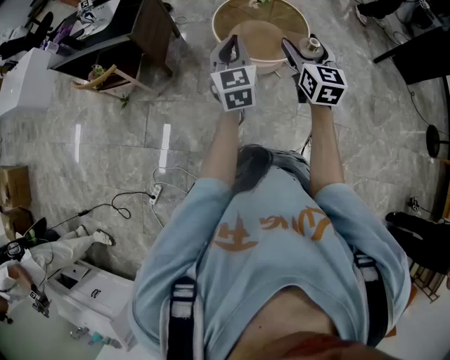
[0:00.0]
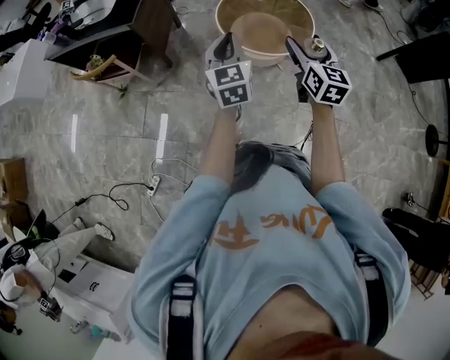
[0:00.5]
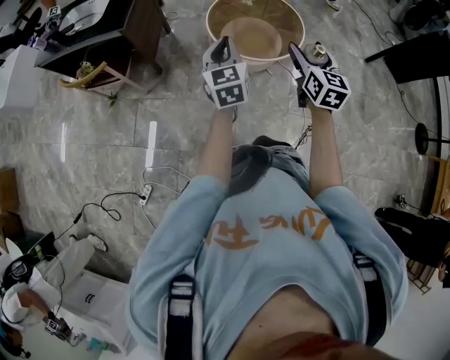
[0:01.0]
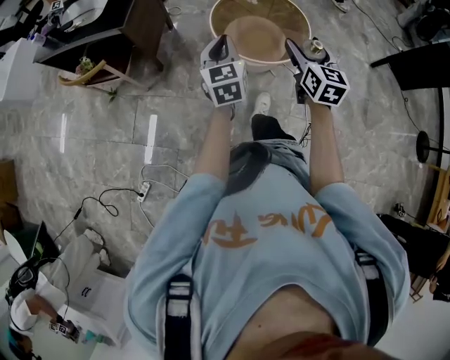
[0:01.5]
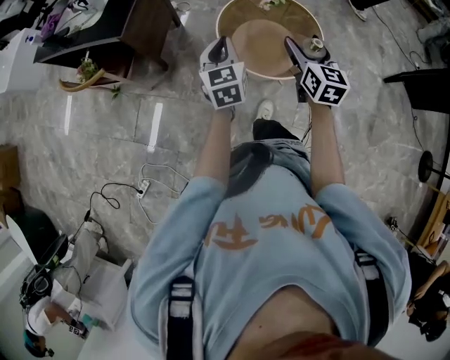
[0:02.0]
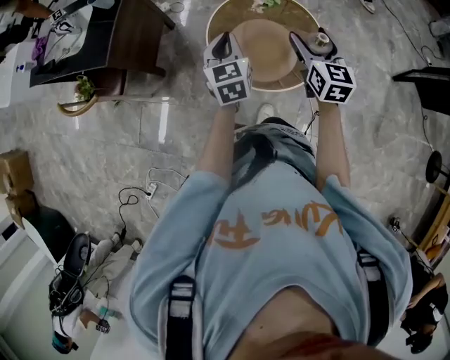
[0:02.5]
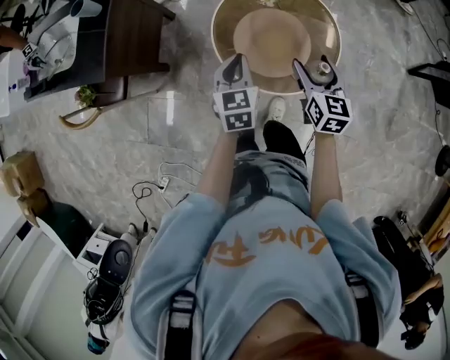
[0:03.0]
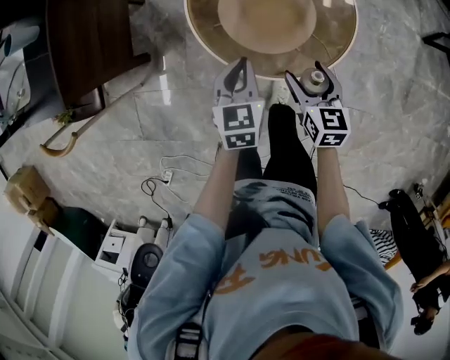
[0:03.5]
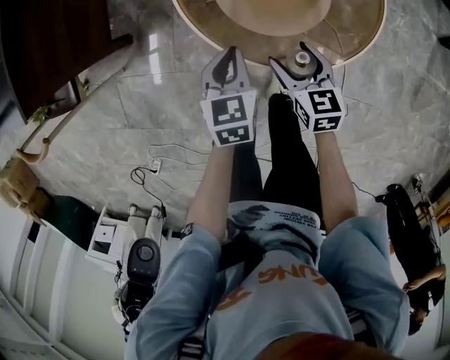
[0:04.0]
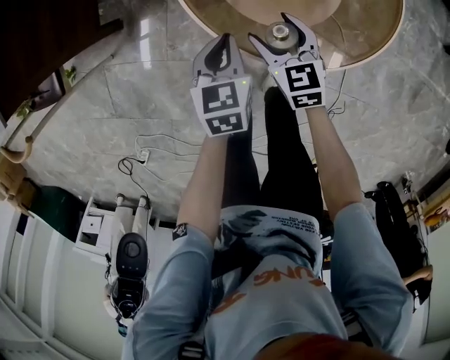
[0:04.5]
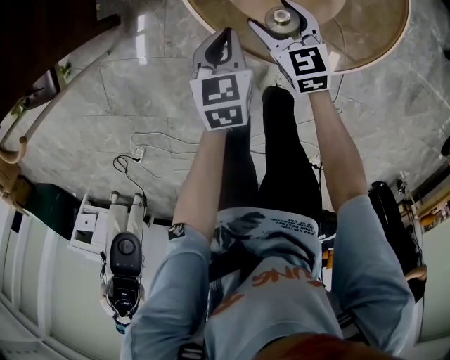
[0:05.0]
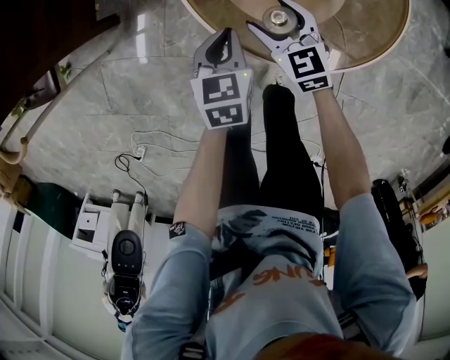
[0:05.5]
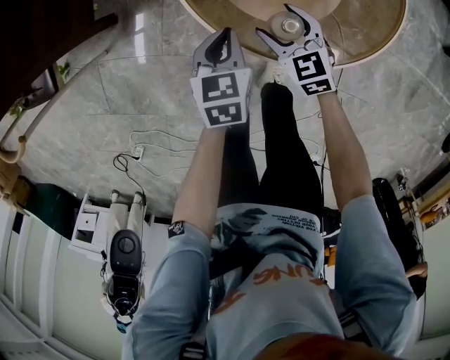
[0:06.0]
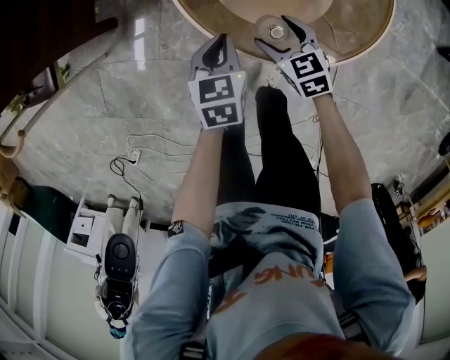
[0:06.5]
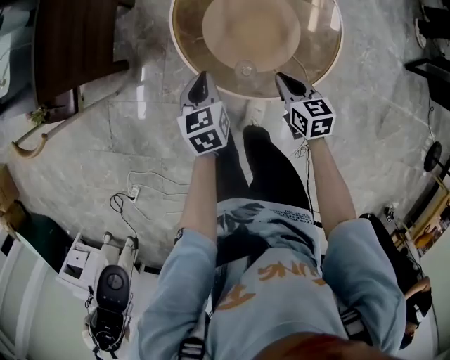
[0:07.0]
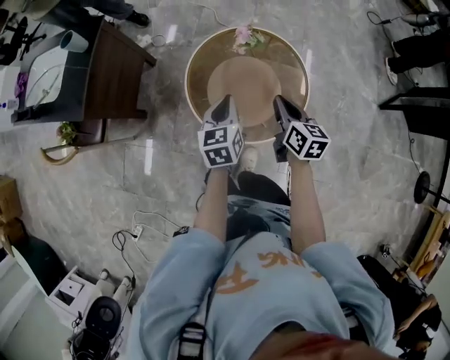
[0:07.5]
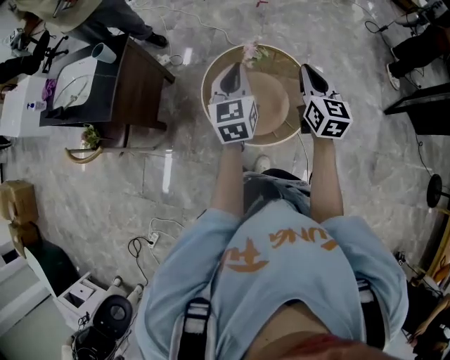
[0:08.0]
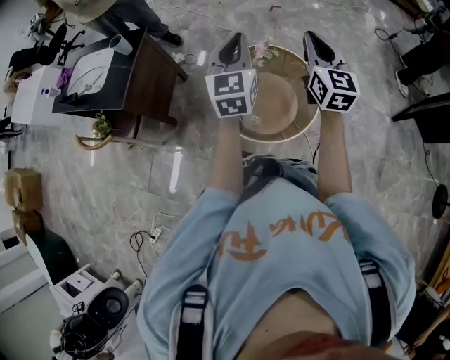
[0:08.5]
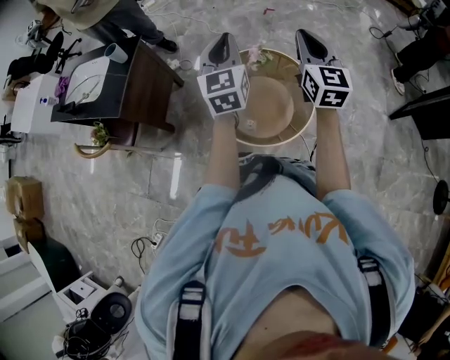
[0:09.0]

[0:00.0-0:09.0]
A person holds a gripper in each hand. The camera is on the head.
0:00.0 to 0:02.0: Both grippers travel together forward, some 20 cm.
0:02.0 to 0:04.5: The two grippers go approximately 50 cm downward. The right gripper changes its angle by roughly 30 degrees, while the left gripper angles its fingers downward, by approximately 30 degrees.
0:04.5 to 0:07.0: The right gripper is displaced to the right, upward and backward by about 15 cm, and closes up. Meanwhile the left gripper is displaced upward by some 10 cm.
0:07.0 to 0:09.0: The grippers both shift upward by roughly 50 cm. The left gripper angles its fingers upward, by roughly 40 degrees. Meanwhile the right gripper tips its fingers upward by roughly 40 degrees.

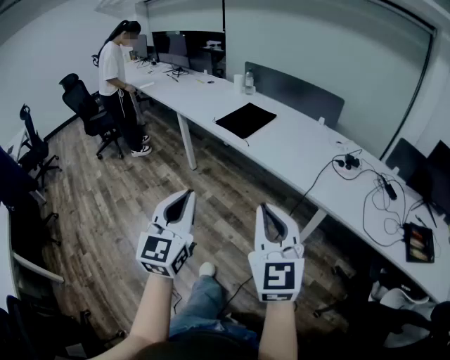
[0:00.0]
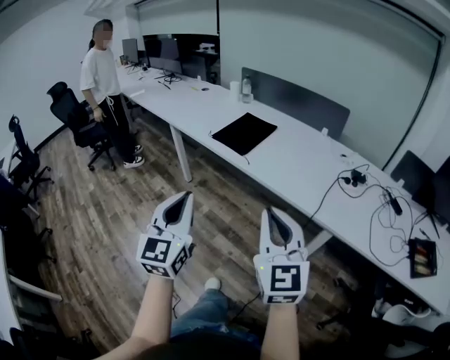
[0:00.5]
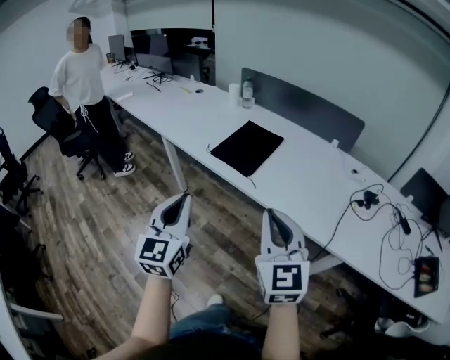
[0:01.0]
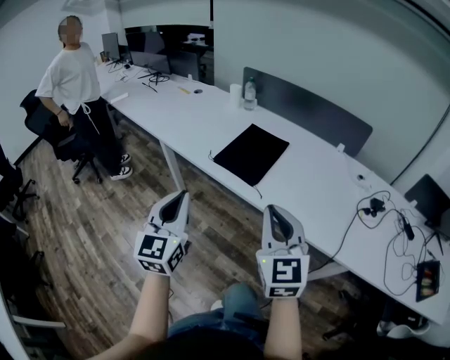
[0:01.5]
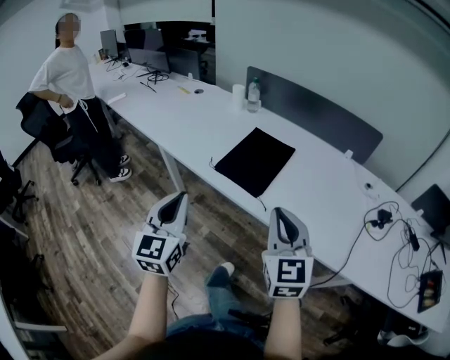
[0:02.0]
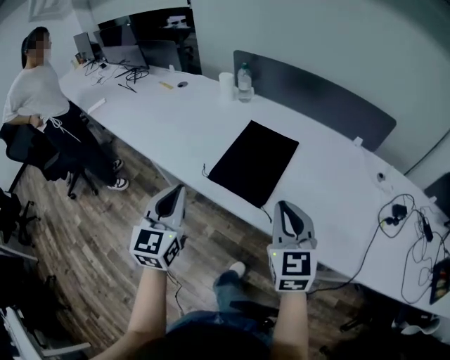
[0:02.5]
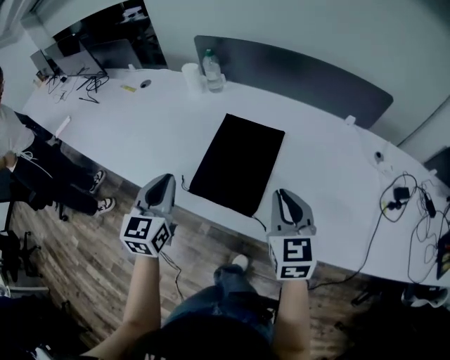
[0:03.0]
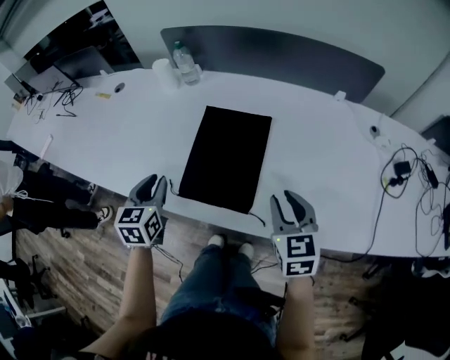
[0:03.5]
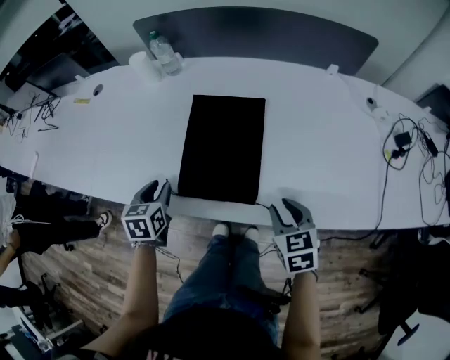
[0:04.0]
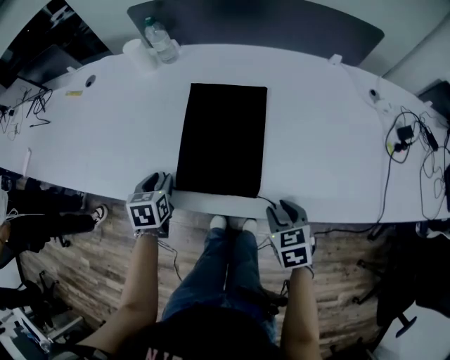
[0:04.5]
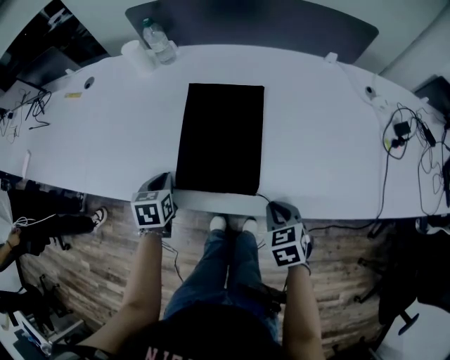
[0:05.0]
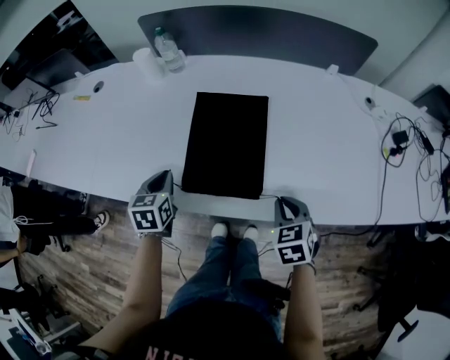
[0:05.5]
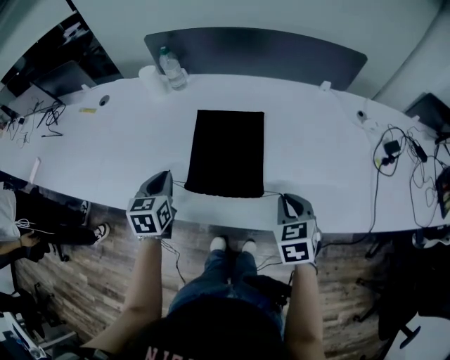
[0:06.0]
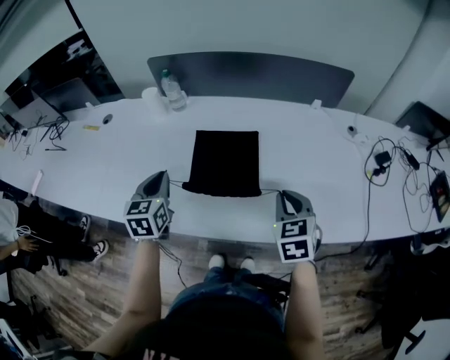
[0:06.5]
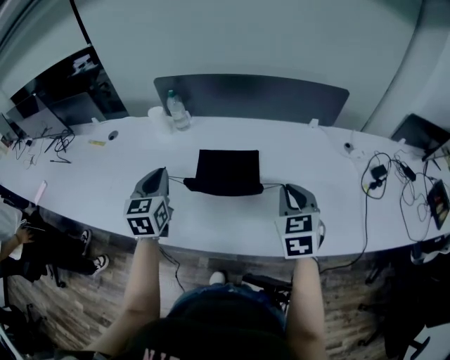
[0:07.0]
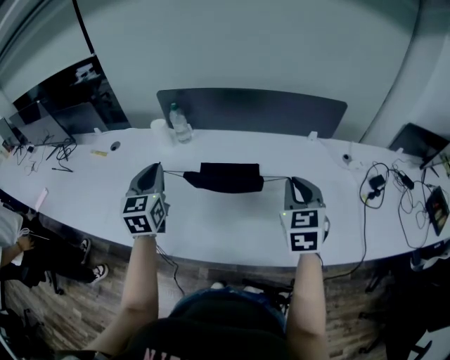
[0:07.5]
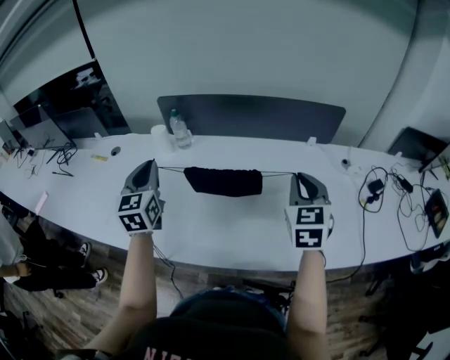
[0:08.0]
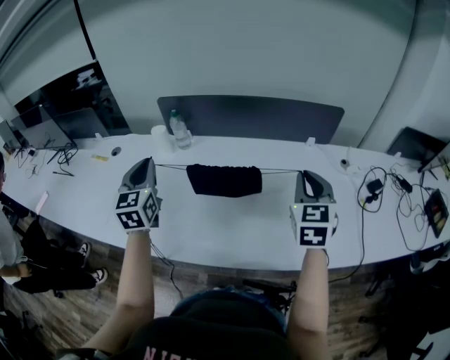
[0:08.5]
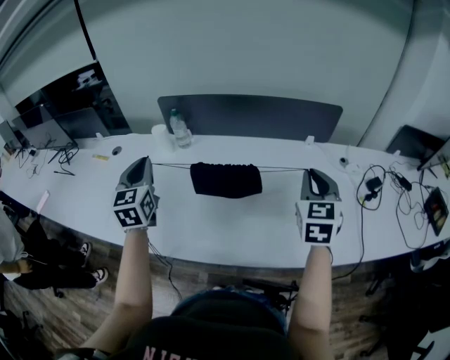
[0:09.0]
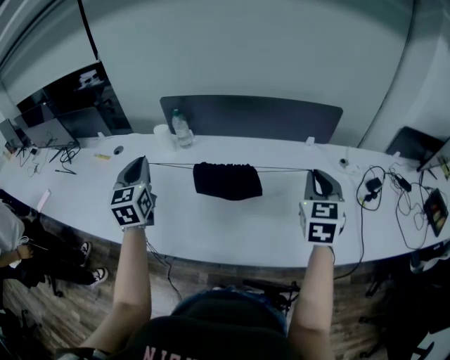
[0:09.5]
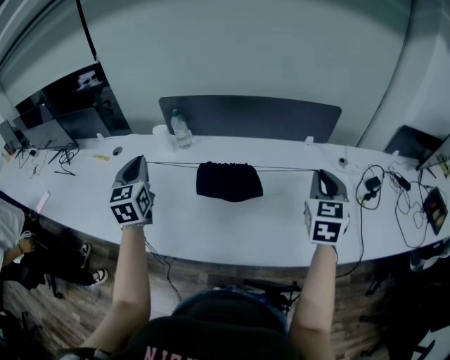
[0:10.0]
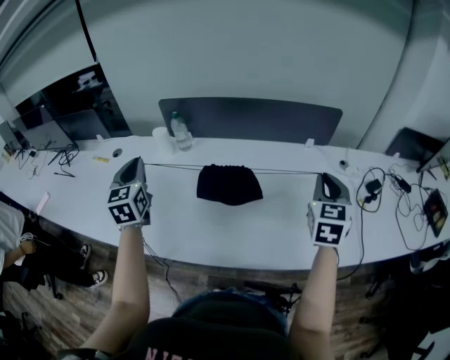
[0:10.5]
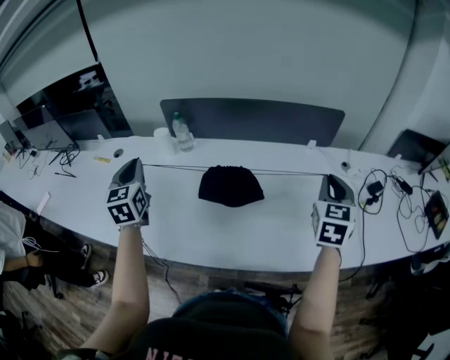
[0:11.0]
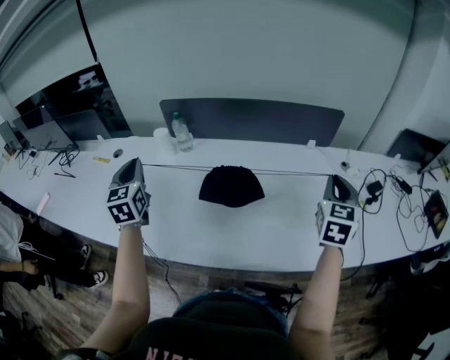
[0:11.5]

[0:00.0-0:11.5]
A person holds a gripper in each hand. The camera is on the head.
0:00.0 to 0:02.0: Both grippers are carried forward, about 50 cm.
0:02.0 to 0:04.0: The right gripper is displaced downward and forward by roughly 30 cm, tilts its fingers approximately 40 degrees downward, and opens up, while the left gripper moves forward and downward, roughly 40 cm, tips its fingers downward by about 40 degrees, and opens up.
0:04.0 to 0:06.0: The left gripper travels upward by some 5 cm, and closes its fingers. The right gripper closes its fingers.
0:06.0 to 0:07.5: Both grippers move upward and forward, some 20 cm. The left gripper rotates about 20 degrees, while the right gripper turns by some 20 degrees.
0:07.5 to 0:09.5: The left gripper moves some 5 cm; the right gripper shifts roughly 5 cm to the right.
0:09.5 to 0:11.5: The right gripper heads to the right, covering some 5 cm.

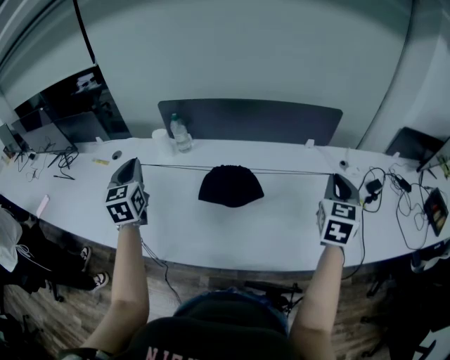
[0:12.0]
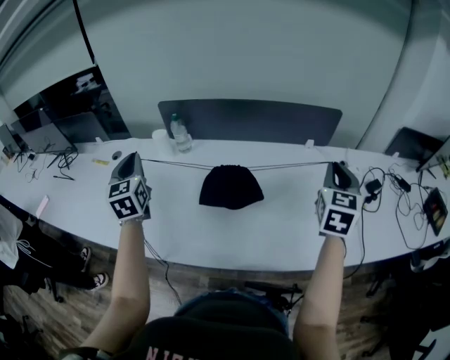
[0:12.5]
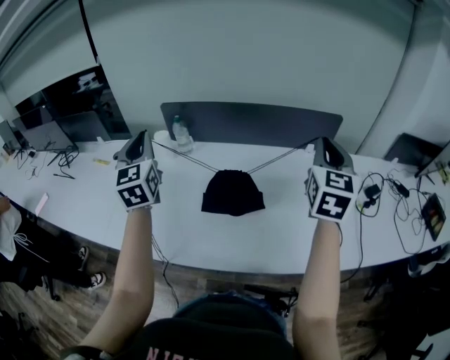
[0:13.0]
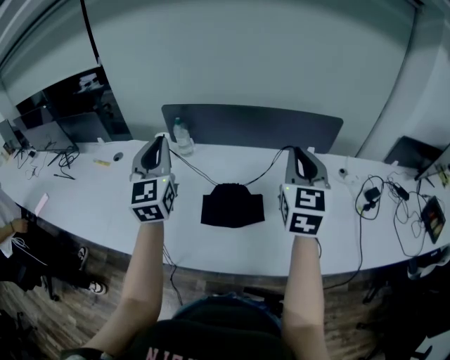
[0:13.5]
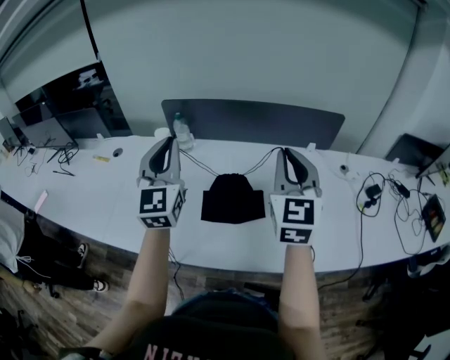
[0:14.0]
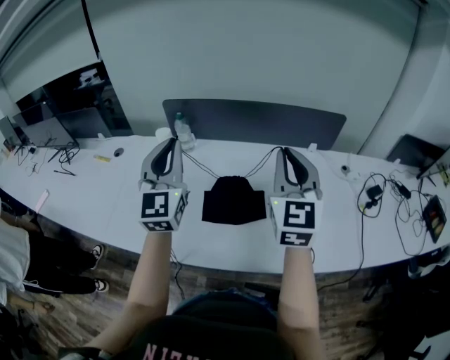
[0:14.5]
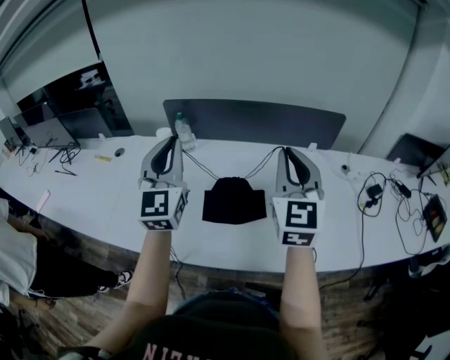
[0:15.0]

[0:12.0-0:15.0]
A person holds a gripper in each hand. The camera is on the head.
0:12.0 to 0:13.5: The left gripper heads to the right and upward, covering some 15 cm, while the right gripper heads to the left and upward, covering about 15 cm.
0:13.5 to 0:15.0: There are only small adjustments of the grippers.

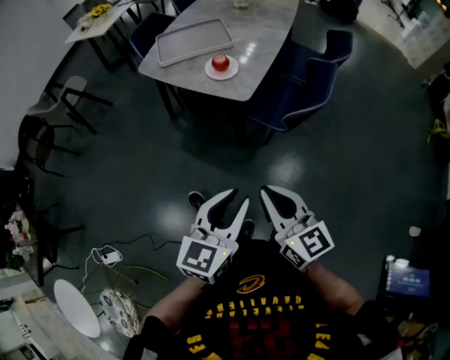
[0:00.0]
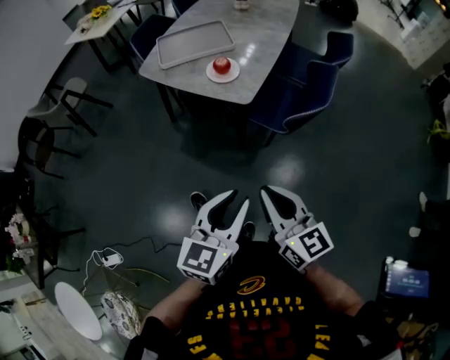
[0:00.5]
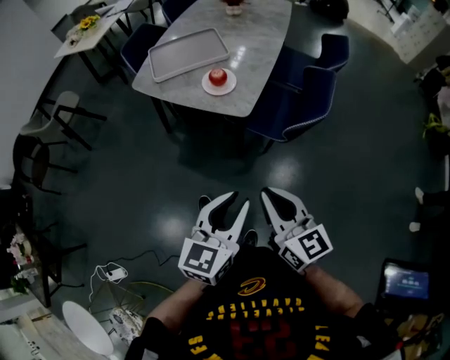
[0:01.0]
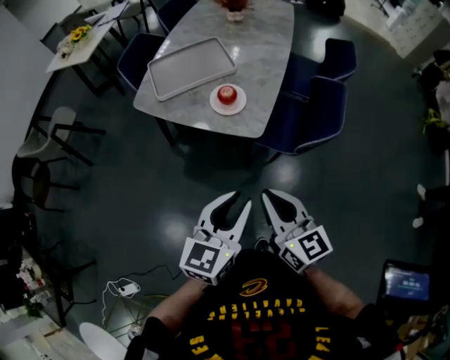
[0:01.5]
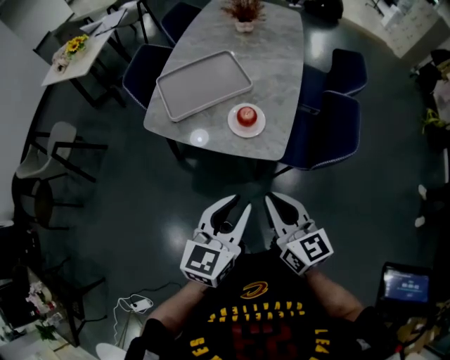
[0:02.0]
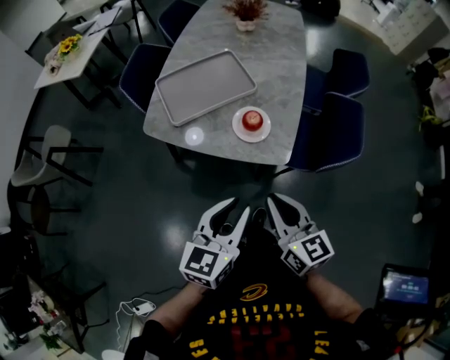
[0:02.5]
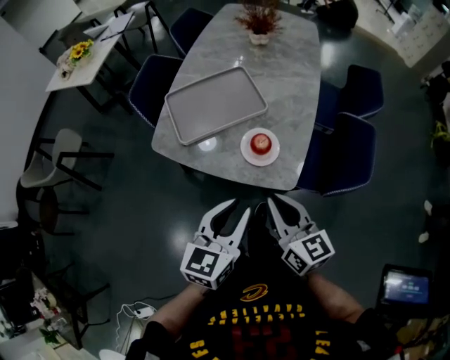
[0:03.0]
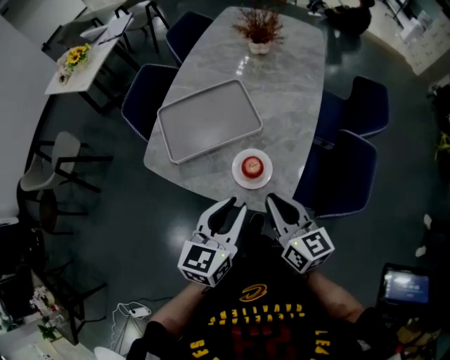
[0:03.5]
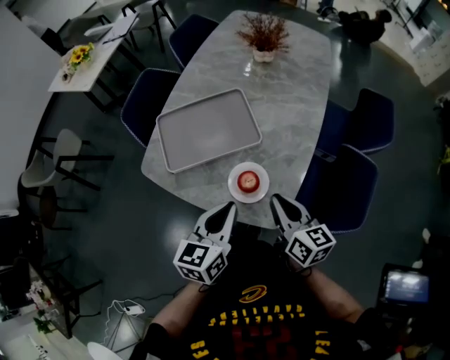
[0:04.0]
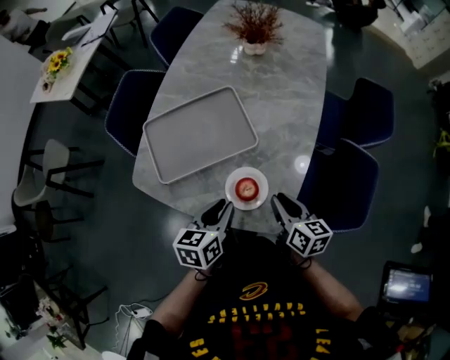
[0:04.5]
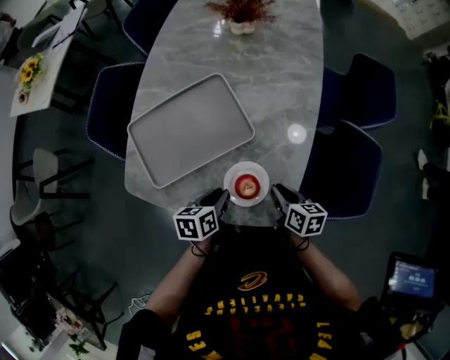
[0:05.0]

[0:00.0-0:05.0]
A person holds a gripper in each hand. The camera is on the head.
0:00.0 to 0:02.5: The grippers both shift forward and to the left by approximately 35 cm.
0:02.5 to 0:05.0: Both grippers travel together forward and downward, approximately 35 cm. The left gripper swivels approximately 40 degrees. The right gripper swivels about 40 degrees.
